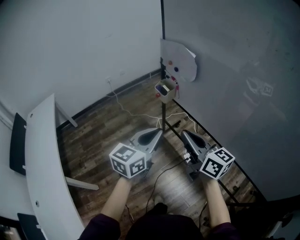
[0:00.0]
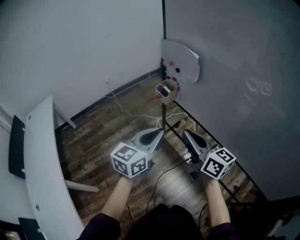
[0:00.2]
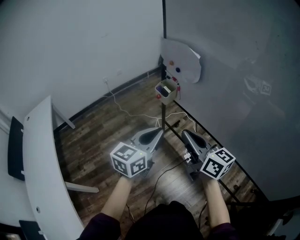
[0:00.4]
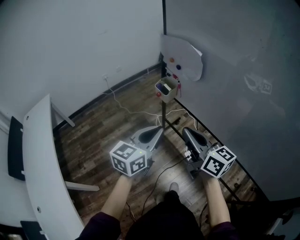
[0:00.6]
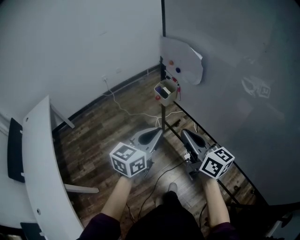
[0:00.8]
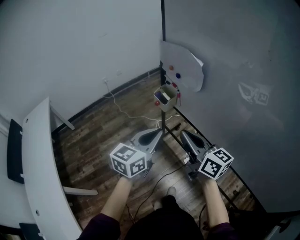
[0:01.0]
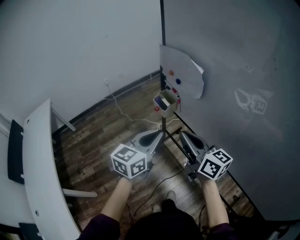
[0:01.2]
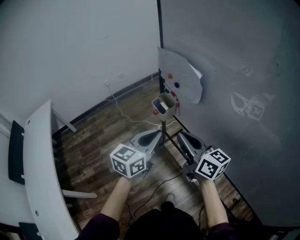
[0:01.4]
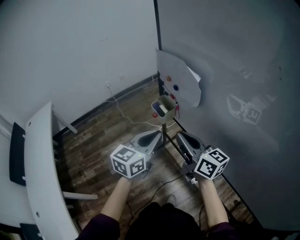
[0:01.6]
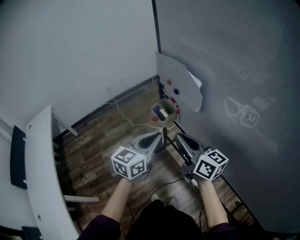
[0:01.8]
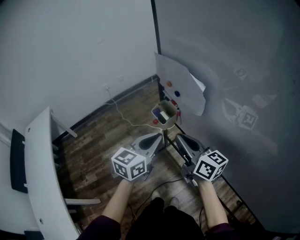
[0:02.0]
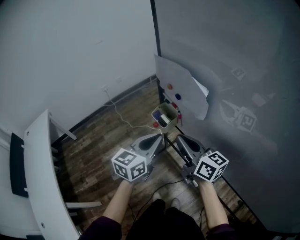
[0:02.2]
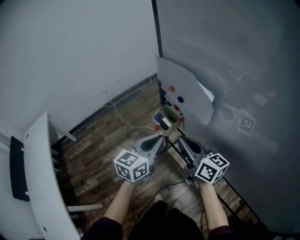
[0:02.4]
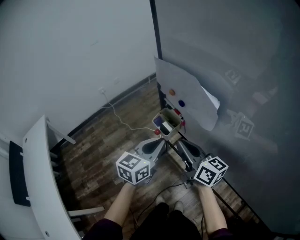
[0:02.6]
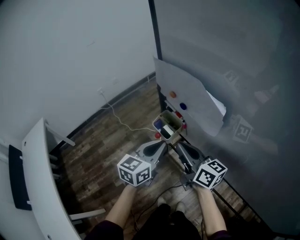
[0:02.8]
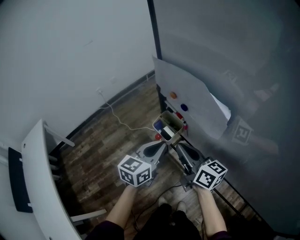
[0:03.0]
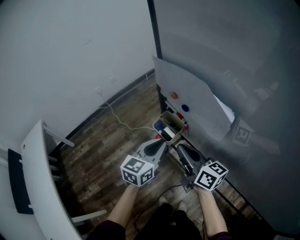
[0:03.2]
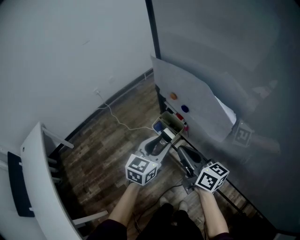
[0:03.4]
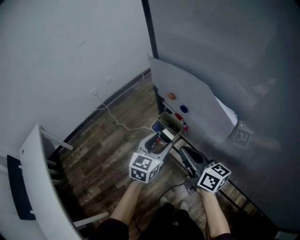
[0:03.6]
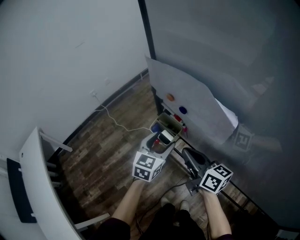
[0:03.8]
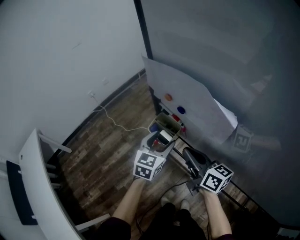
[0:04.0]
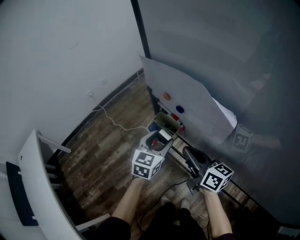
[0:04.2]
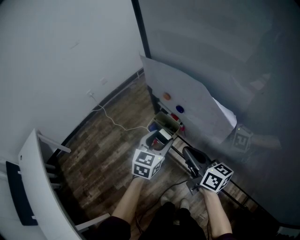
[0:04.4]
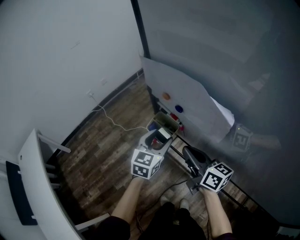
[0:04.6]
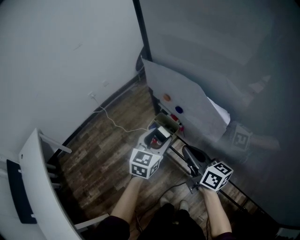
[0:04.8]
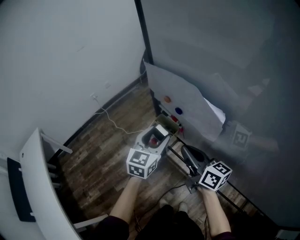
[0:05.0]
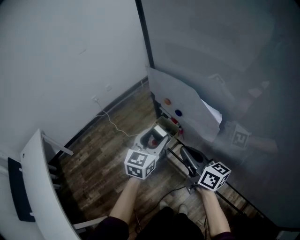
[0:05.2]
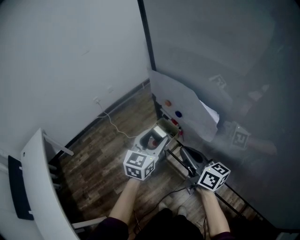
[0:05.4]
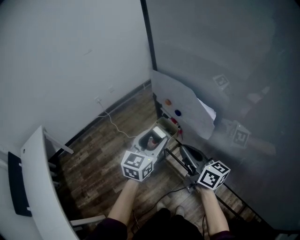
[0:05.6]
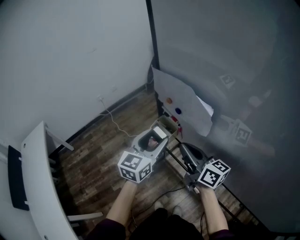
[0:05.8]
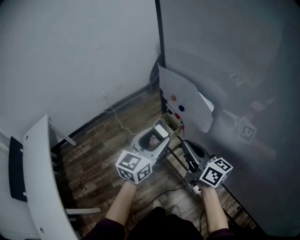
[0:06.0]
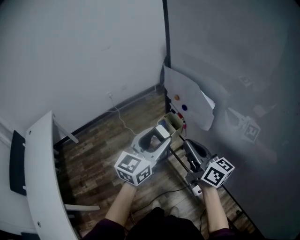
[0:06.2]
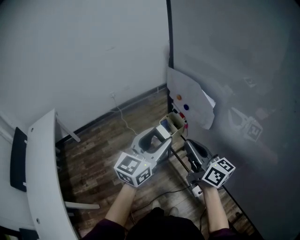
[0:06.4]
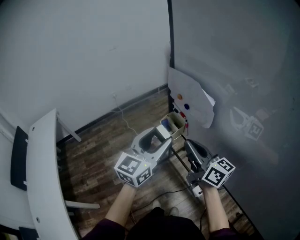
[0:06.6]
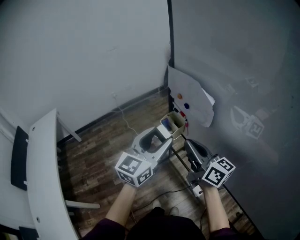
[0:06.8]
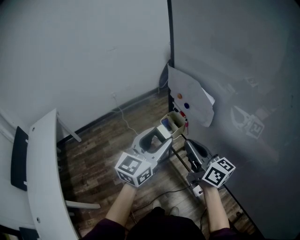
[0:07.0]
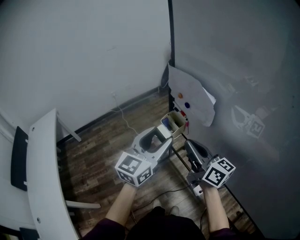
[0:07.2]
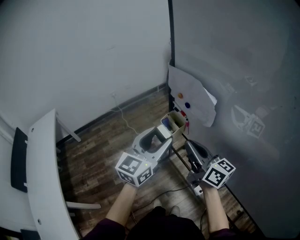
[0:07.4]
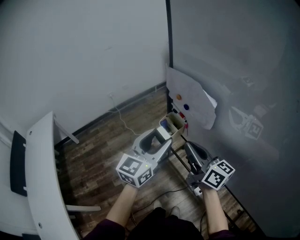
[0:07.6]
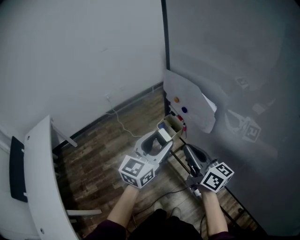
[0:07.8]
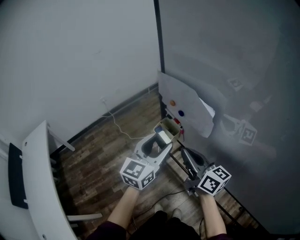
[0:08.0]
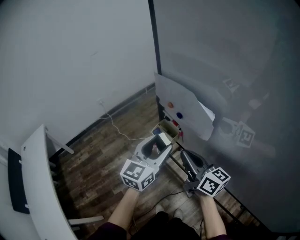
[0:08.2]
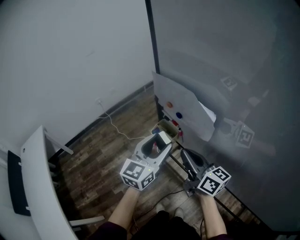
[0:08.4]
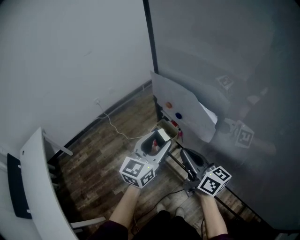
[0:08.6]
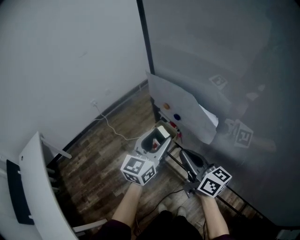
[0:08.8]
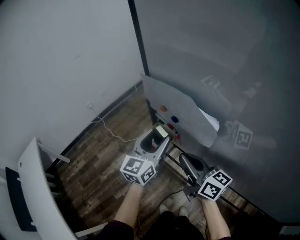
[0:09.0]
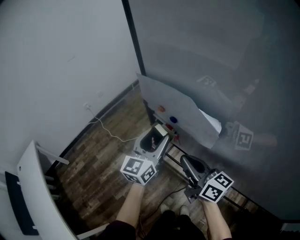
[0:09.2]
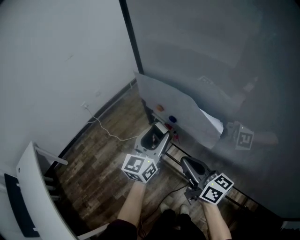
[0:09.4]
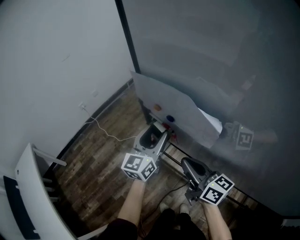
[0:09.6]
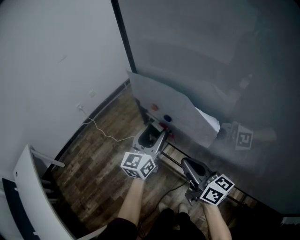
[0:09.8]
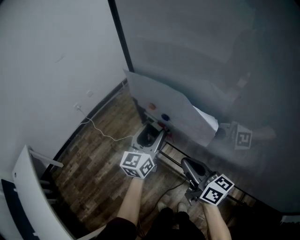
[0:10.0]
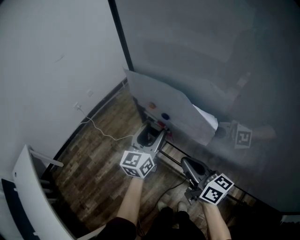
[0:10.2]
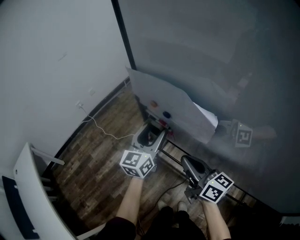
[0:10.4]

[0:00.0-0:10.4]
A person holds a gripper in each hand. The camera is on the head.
0:00.0 to 0:01.4: Both grippers travel together forward, approximately 15 cm.
0:01.4 to 0:03.0: Both grippers move forward and downward, about 20 cm.
0:03.0 to 0:04.4: The right gripper moves some 5 cm. The left gripper is displaced forward and downward by approximately 10 cm, and opens its fingers.
0:04.4 to 0:06.0: The right gripper is displaced upward and backward by about 15 cm, while the left gripper moves upward and backward, some 20 cm, and rotates roughly 20 degrees.
0:06.0 to 0:07.4: The left gripper moves backward, some 5 cm.
0:07.4 to 0:09.0: The right gripper goes roughly 10 cm forward and downward. Meanwhile the left gripper moves forward and downward, roughly 15 cm.
0:09.0 to 0:10.4: The left gripper ends up approximately 5 cm from where it was.

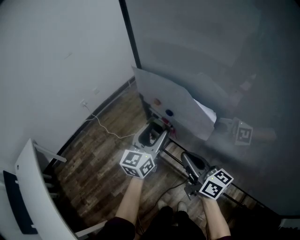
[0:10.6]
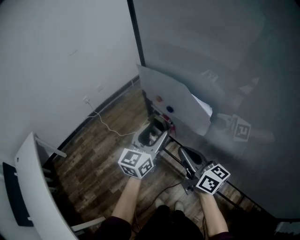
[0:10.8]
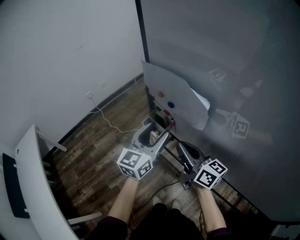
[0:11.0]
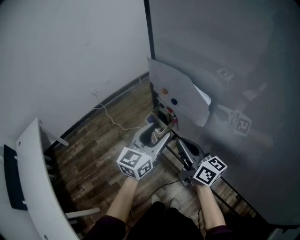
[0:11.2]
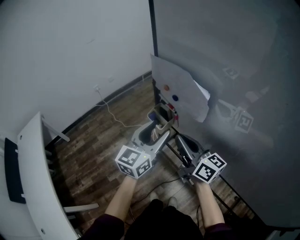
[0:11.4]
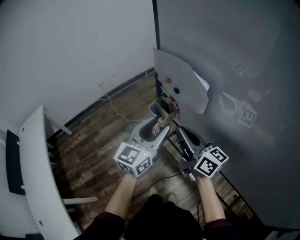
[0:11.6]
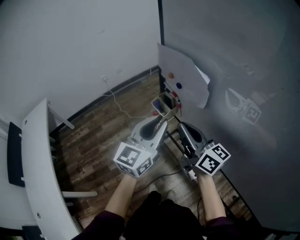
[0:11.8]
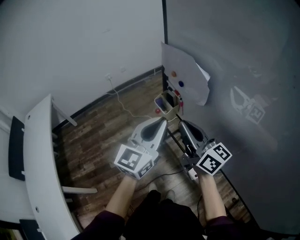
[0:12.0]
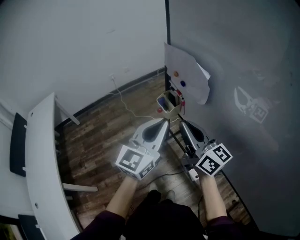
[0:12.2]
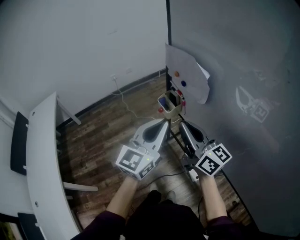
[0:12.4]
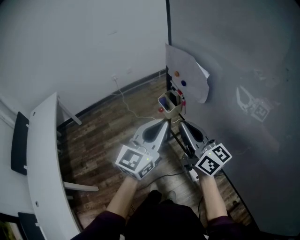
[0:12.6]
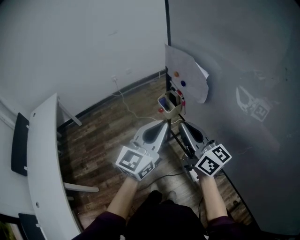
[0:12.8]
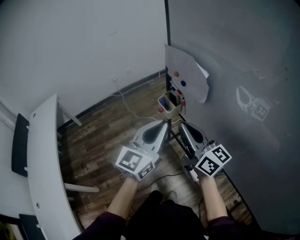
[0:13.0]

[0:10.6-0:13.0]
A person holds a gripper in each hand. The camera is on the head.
0:10.6 to 0:11.8: The left gripper heads backward and upward, covering approximately 20 cm, and closes, while the right gripper shifts about 10 cm upward and backward.
0:11.8 to 0:13.0: The left gripper goes approximately 5 cm backward.

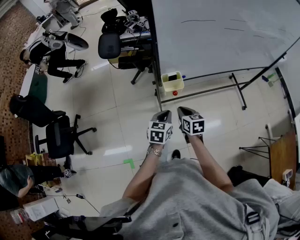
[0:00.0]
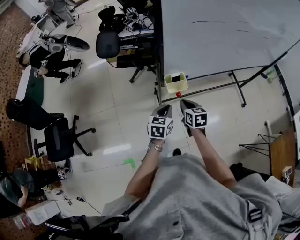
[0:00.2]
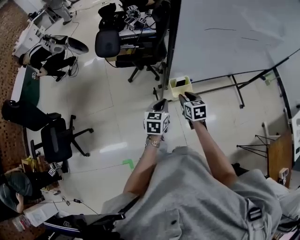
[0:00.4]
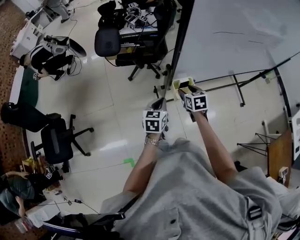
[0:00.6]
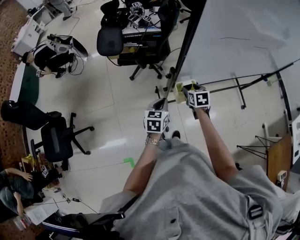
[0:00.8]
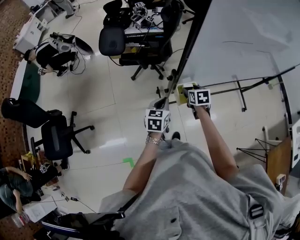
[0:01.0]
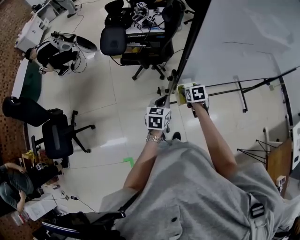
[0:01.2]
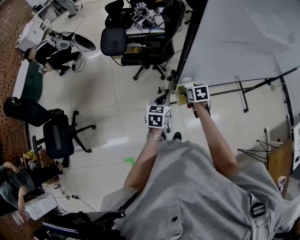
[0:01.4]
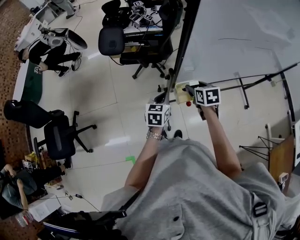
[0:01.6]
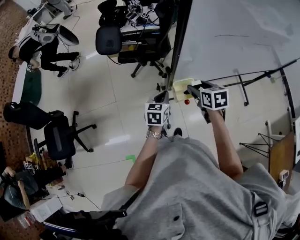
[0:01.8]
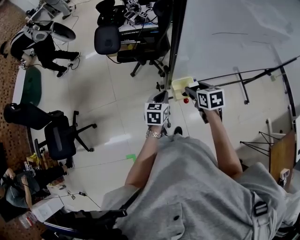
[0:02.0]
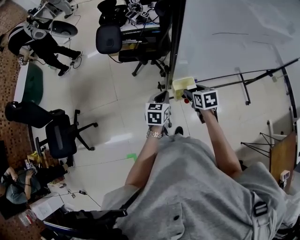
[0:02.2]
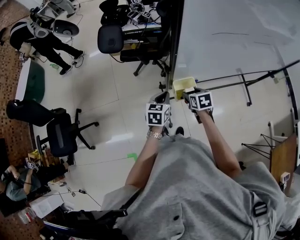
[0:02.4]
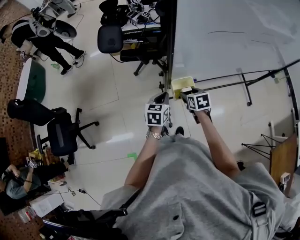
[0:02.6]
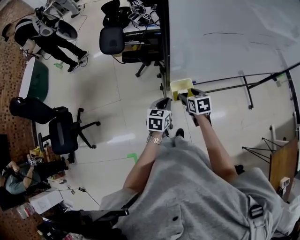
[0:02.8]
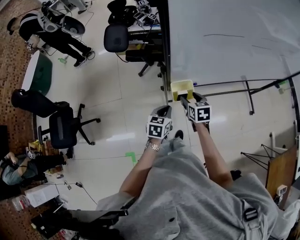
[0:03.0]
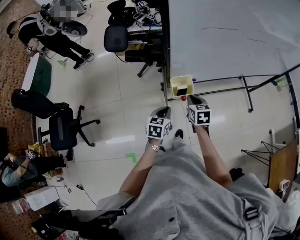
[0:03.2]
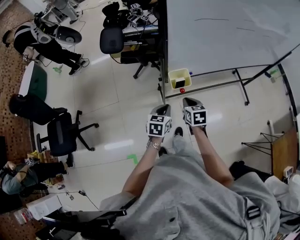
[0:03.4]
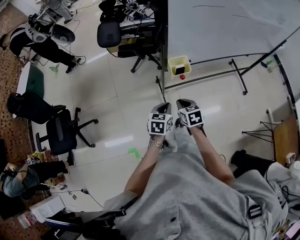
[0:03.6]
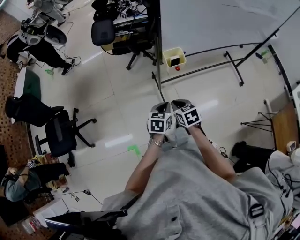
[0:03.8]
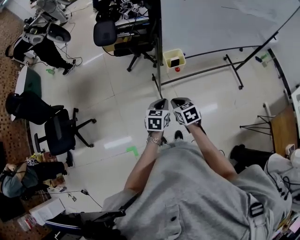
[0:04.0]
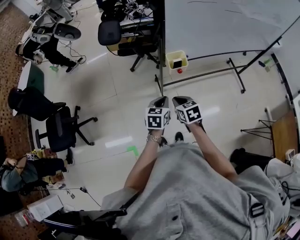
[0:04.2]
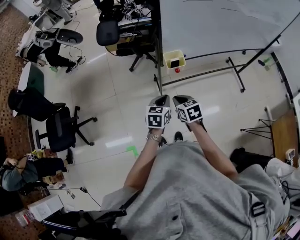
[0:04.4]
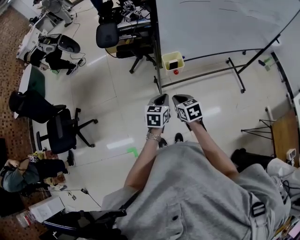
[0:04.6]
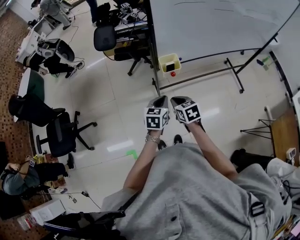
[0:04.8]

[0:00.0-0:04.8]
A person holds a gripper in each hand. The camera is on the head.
0:00.0 to 0:01.6: The right gripper moves forward, approximately 20 cm, and opens its fingers; the left gripper travels forward and to the left by roughly 20 cm.
0:01.6 to 0:03.2: The right gripper goes up and down, about 10 cm each way, reversing 2 times, and closes its fingers, while the left gripper heads backward, covering approximately 10 cm.
0:03.2 to 0:04.8: The left gripper travels backward by roughly 10 cm. The right gripper shifts roughly 20 cm backward.

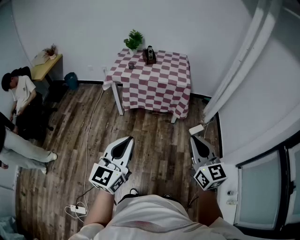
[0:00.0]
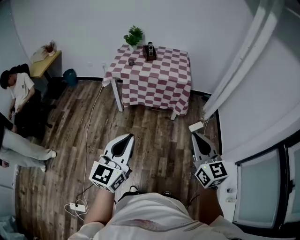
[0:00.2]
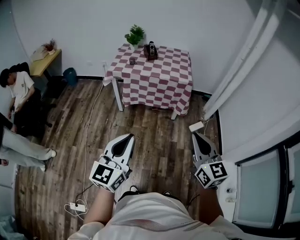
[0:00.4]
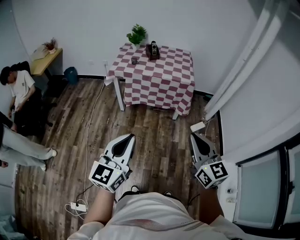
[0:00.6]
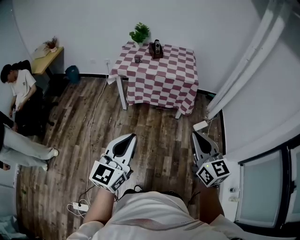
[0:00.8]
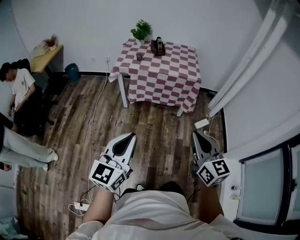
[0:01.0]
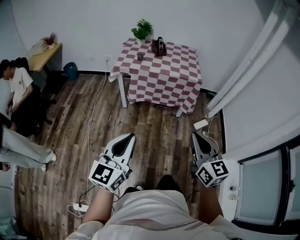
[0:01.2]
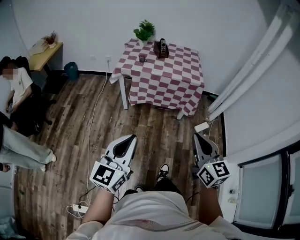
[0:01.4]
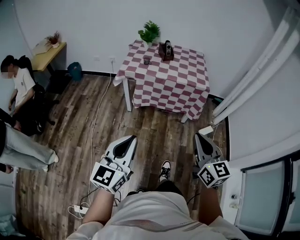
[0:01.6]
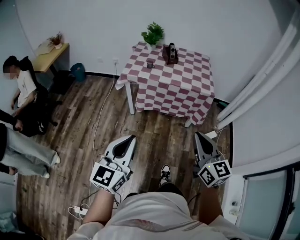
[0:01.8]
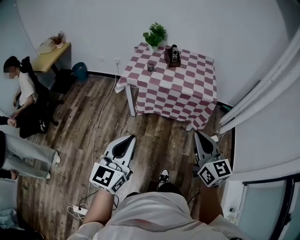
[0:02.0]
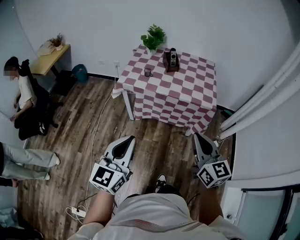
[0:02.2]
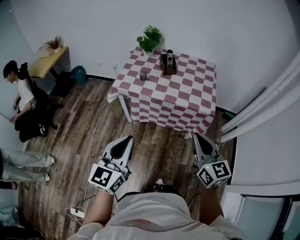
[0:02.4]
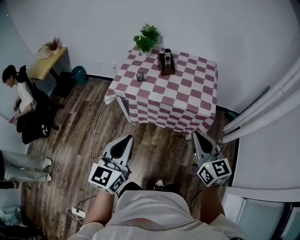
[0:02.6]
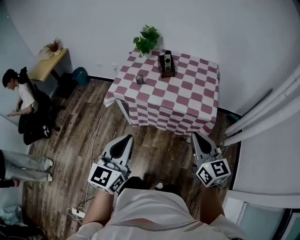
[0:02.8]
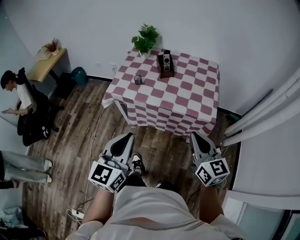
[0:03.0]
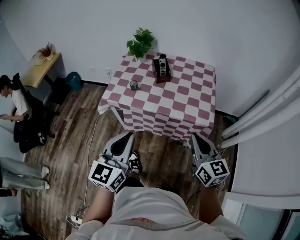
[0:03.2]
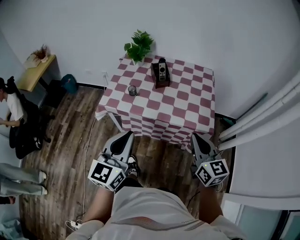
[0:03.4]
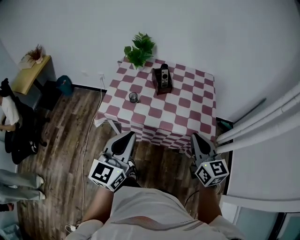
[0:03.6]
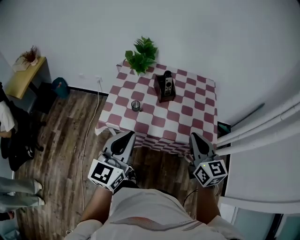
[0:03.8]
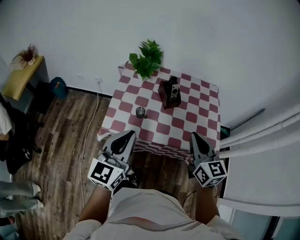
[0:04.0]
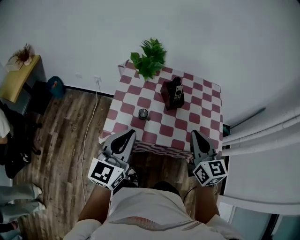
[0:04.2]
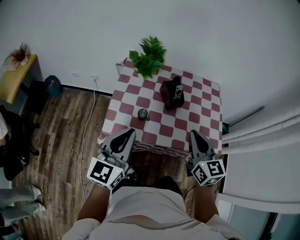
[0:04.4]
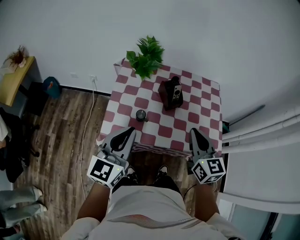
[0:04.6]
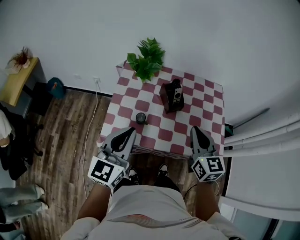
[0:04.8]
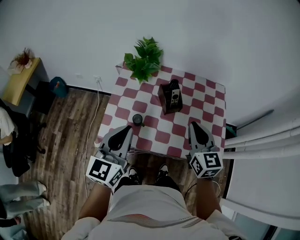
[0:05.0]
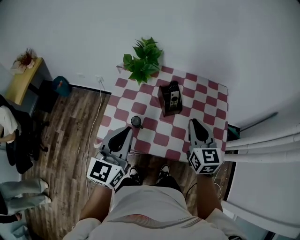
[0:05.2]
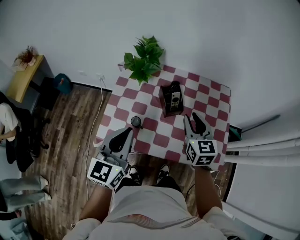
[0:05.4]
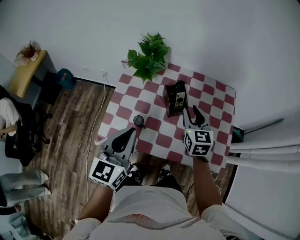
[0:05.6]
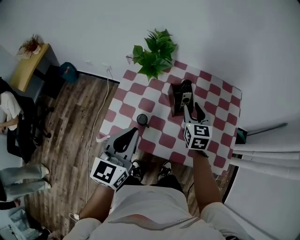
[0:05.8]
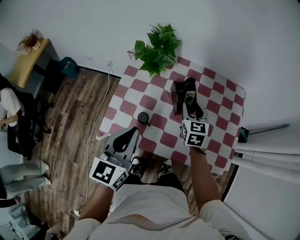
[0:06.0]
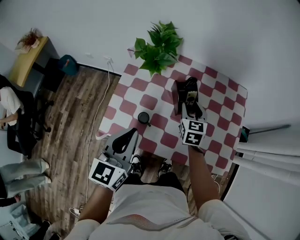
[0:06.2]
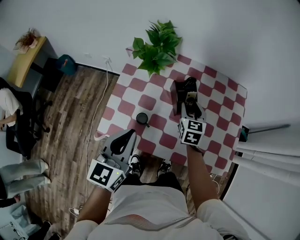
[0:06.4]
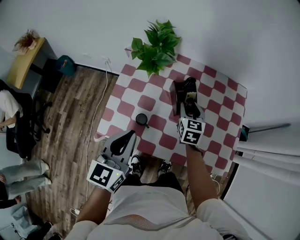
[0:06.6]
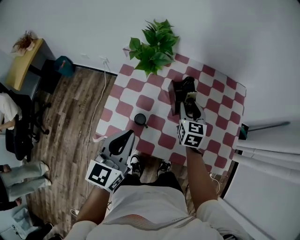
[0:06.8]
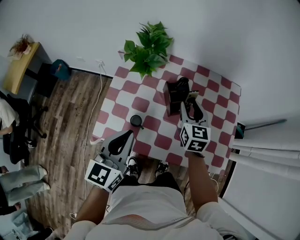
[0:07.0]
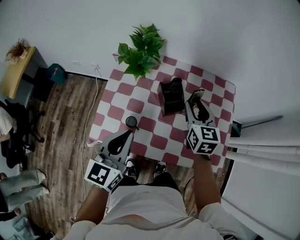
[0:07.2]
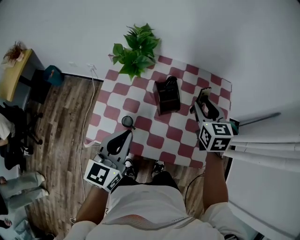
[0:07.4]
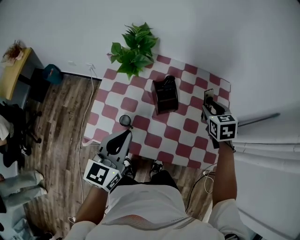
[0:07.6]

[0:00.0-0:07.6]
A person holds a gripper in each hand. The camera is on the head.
0:00.0 to 0:01.6: Both grippers move to the left and forward, some 15 cm.
0:01.6 to 0:03.0: The right gripper is displaced forward by about 35 cm; the left gripper travels forward and to the right by about 35 cm.
0:03.0 to 0:04.6: The two grippers go approximately 30 cm forward and to the left.
0:04.6 to 0:06.0: The right gripper moves forward and downward, about 25 cm, and opens, while the left gripper shifts some 10 cm forward.
0:06.0 to 0:07.6: The right gripper goes roughly 15 cm to the right, and rotates approximately 20 degrees.
